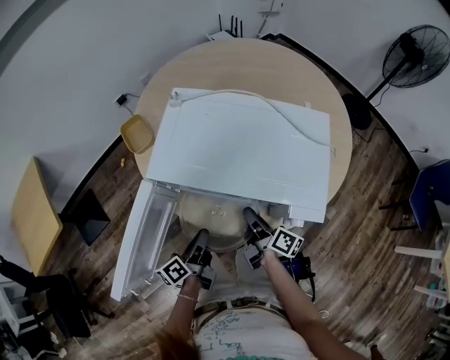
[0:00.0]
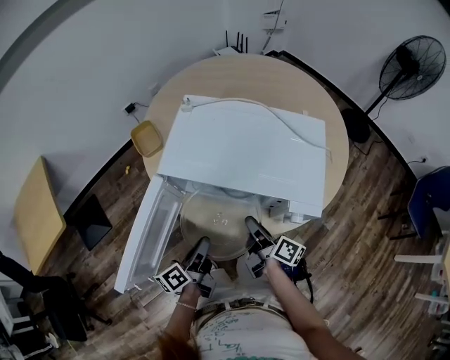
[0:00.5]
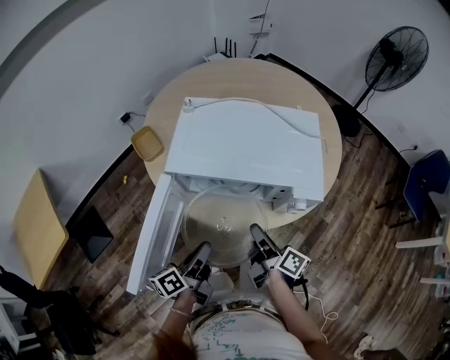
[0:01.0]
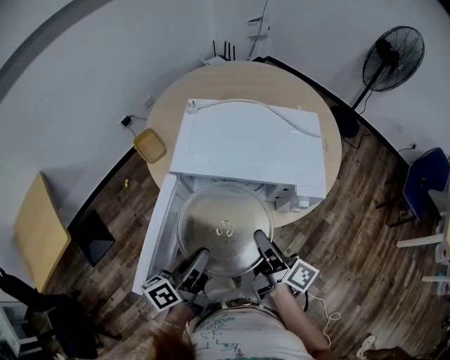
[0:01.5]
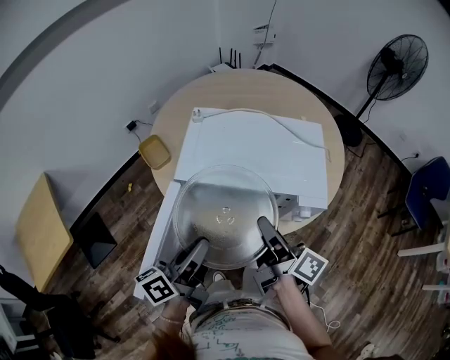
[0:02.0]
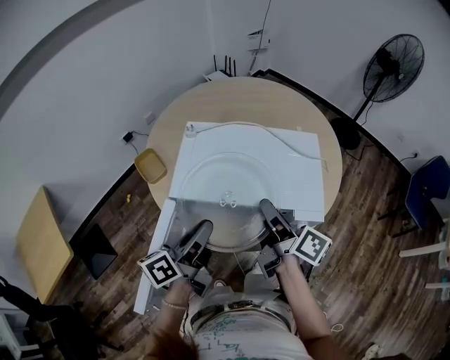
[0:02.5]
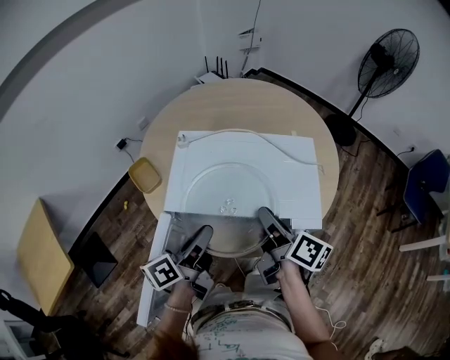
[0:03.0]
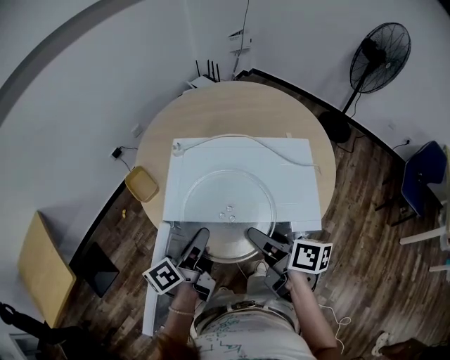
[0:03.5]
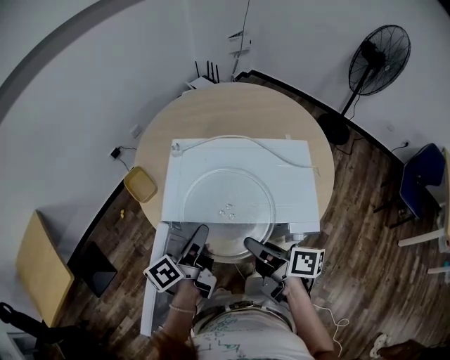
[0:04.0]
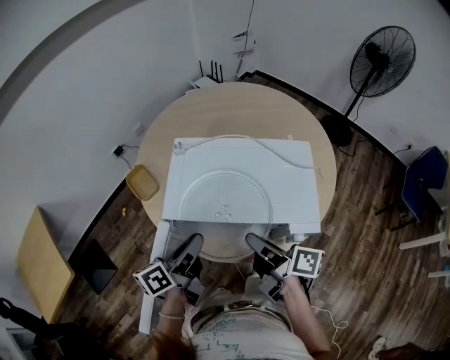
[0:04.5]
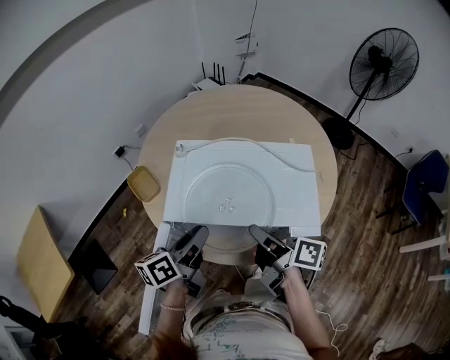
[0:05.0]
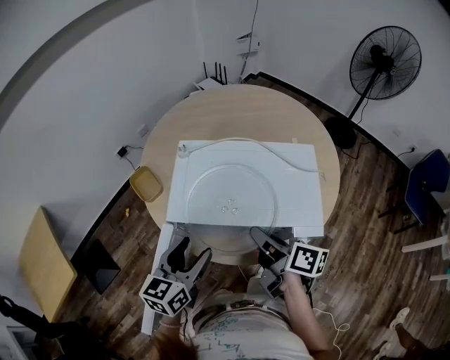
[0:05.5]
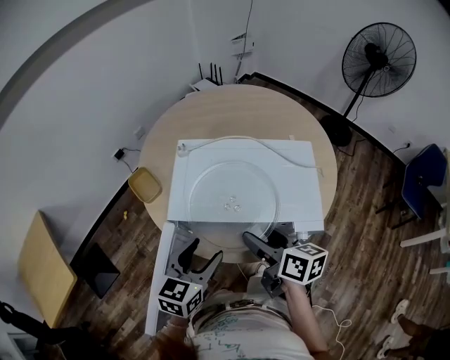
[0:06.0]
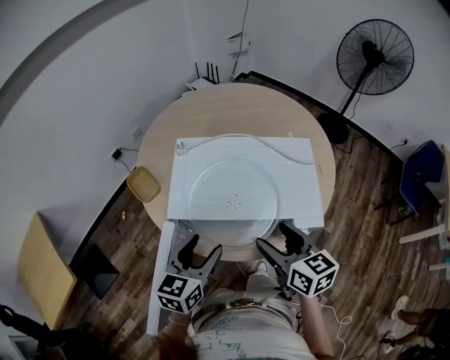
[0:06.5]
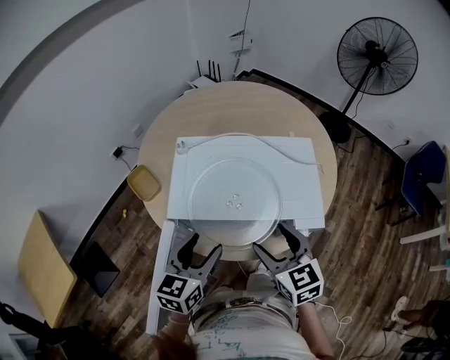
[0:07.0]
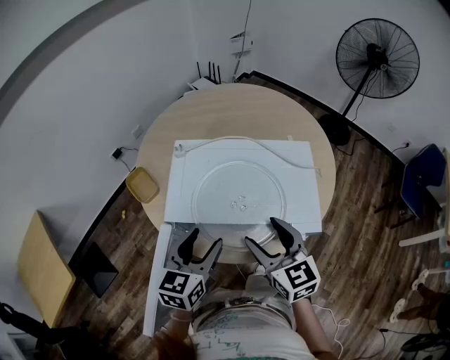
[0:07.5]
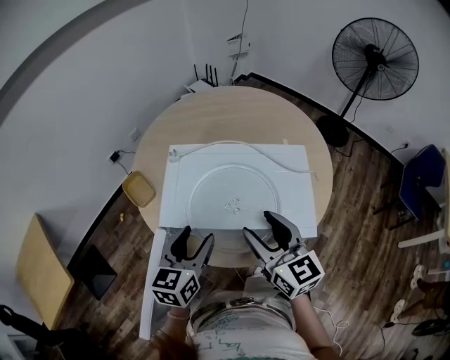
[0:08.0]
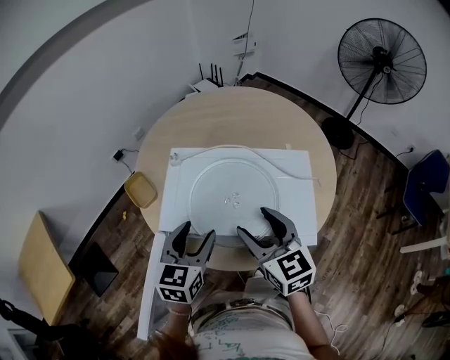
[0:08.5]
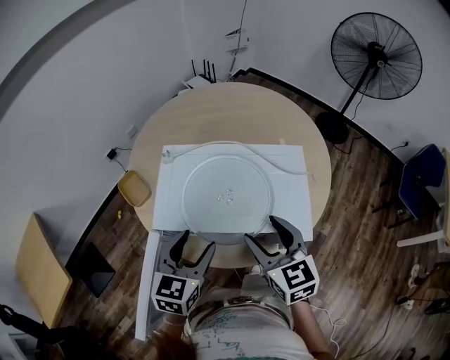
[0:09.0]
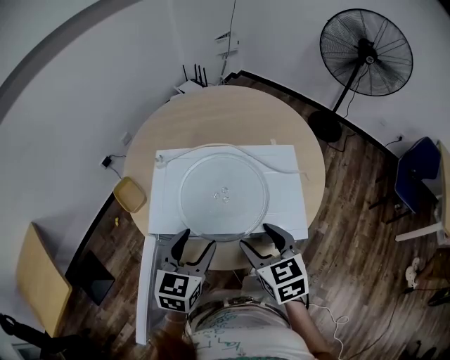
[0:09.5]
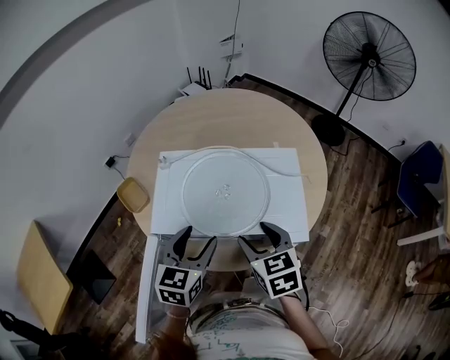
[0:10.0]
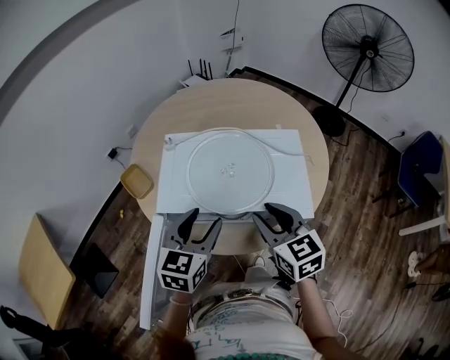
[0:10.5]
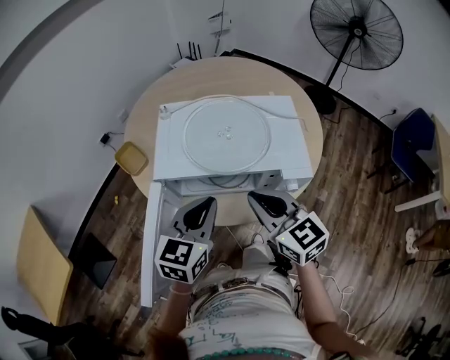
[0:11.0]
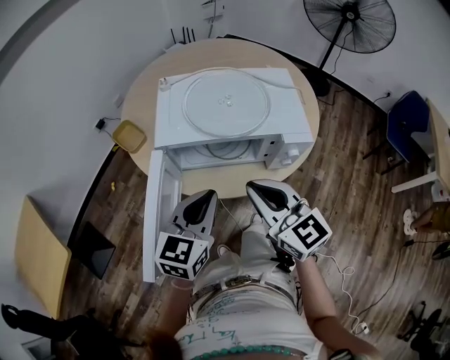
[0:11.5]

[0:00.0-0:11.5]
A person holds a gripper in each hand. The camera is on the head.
0:00.0 to 0:02.0: The two grippers go approximately 20 cm upward. The left gripper turns by approximately 30 degrees.
0:02.0 to 0:04.0: The right gripper opens, then closes once more, while the left gripper moves forward, about 15 cm.
0:04.0 to 0:06.0: The left gripper heads backward, covering about 5 cm, rotates around the line of its fingers by about 60 degrees, clockwise from behind, and opens its fingers. The right gripper turns by some 30 degrees, and opens up.
0:06.0 to 0:07.5: The right gripper rolls counterclockwise, seen from behind, by about 40 degrees.
0:07.5 to 0:09.5: The grippers make only small movements.
0:09.5 to 0:11.5: The left gripper travels backward by about 15 cm, and closes. Meanwhile the right gripper is displaced backward and to the left by roughly 15 cm, changes its angle by about 30 degrees, and closes its fingers.

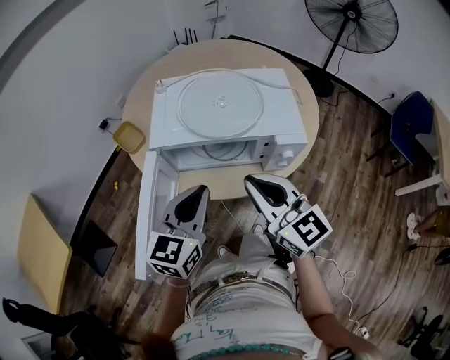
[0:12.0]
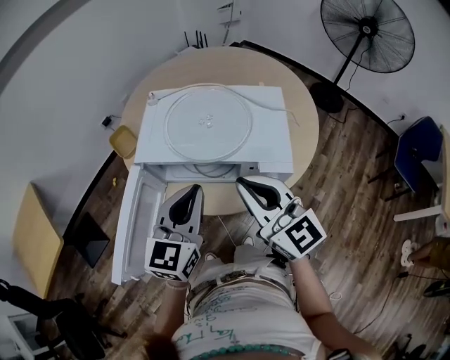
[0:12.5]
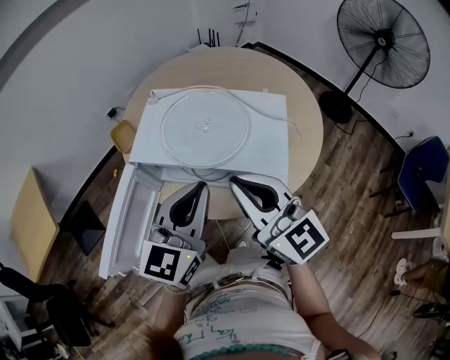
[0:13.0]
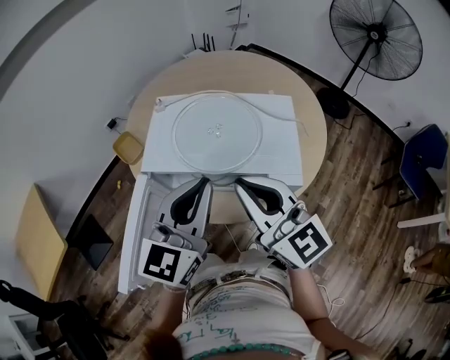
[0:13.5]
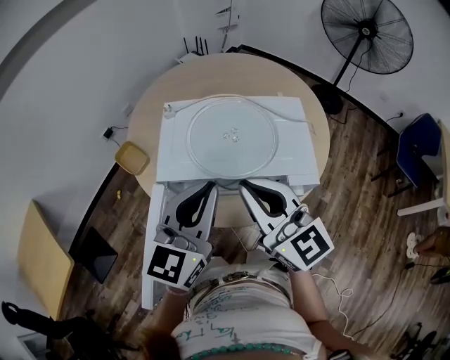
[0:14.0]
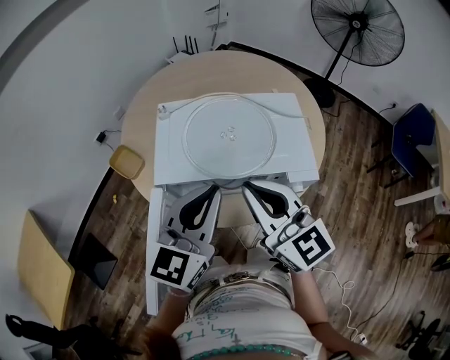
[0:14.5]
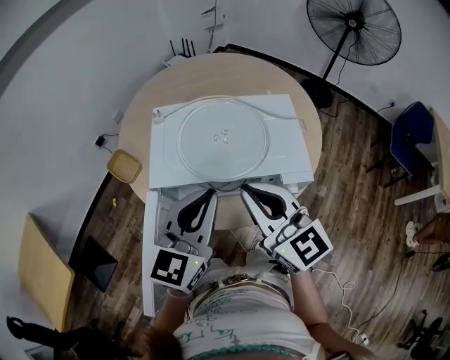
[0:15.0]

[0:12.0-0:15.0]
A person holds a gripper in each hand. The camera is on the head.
0:12.0 to 0:13.5: The left gripper shifts approximately 15 cm upward, to the right and forward. The right gripper is displaced forward and upward by some 10 cm.
0:13.5 to 0:15.0: The grippers move only a little.

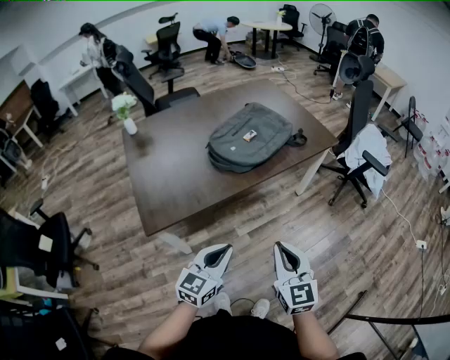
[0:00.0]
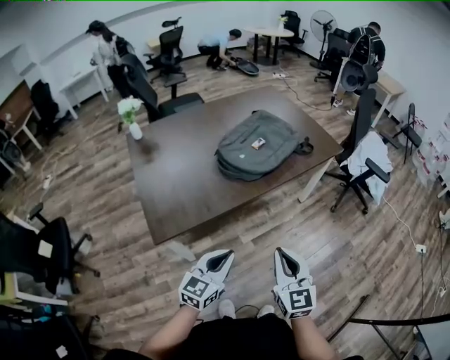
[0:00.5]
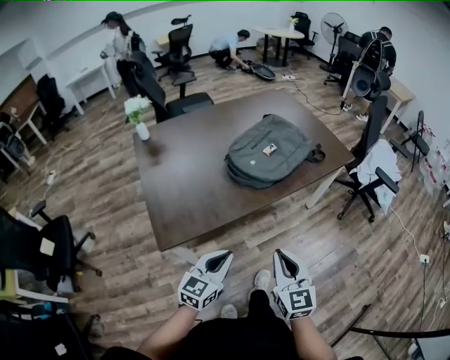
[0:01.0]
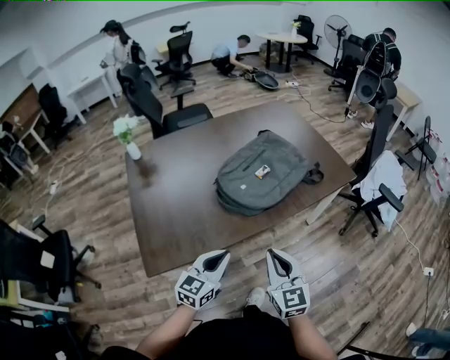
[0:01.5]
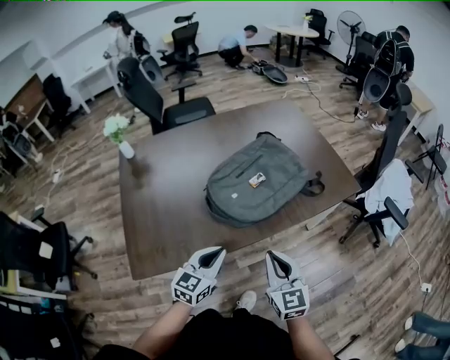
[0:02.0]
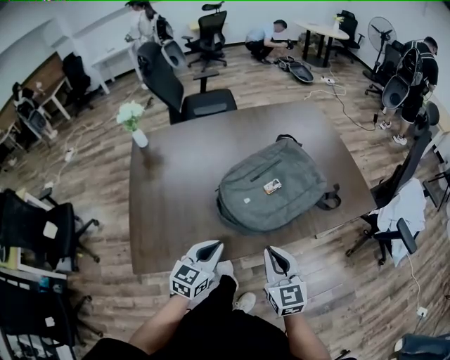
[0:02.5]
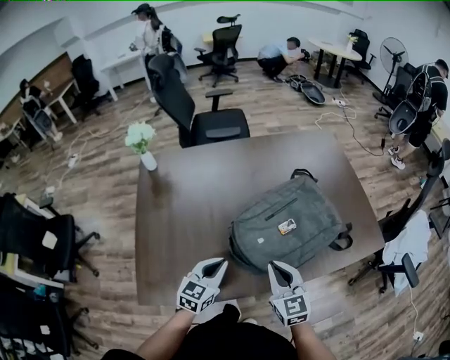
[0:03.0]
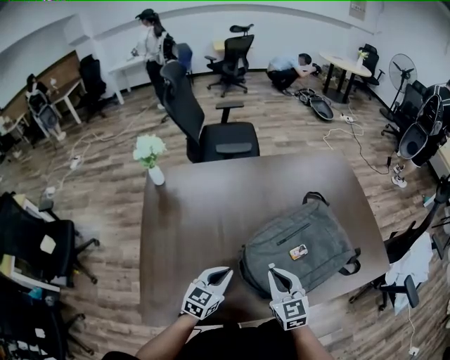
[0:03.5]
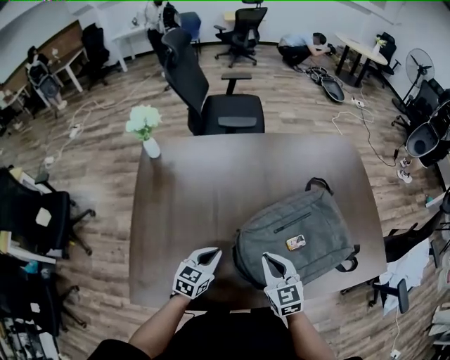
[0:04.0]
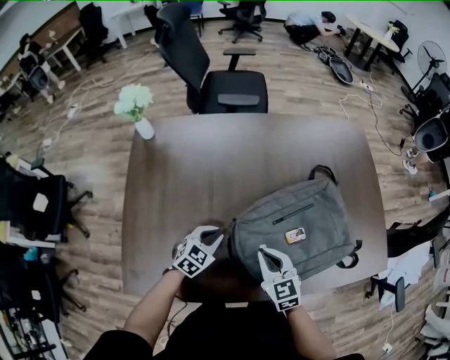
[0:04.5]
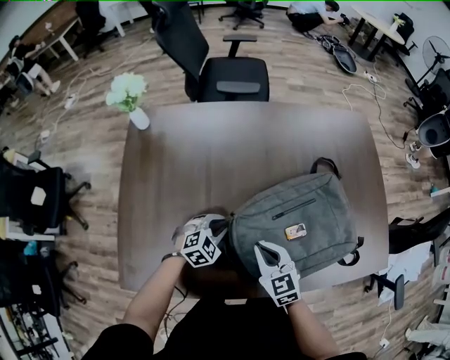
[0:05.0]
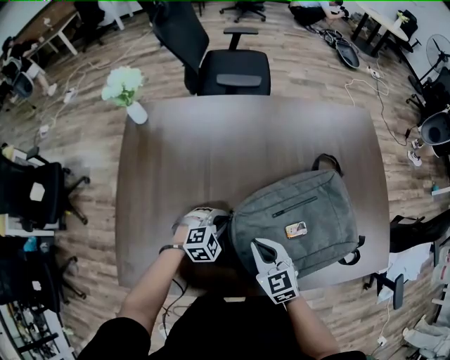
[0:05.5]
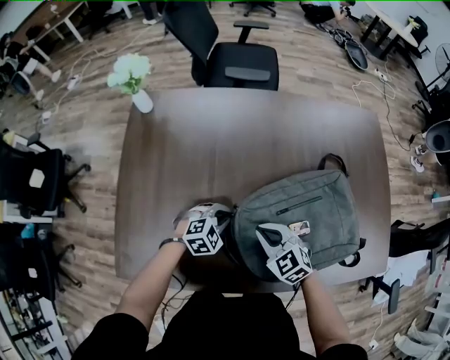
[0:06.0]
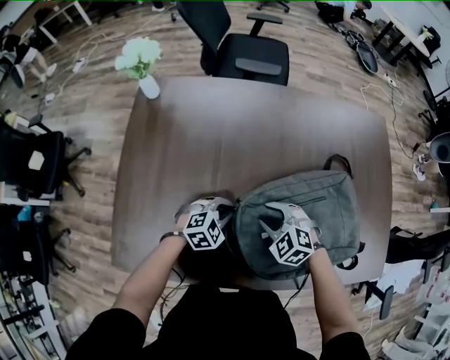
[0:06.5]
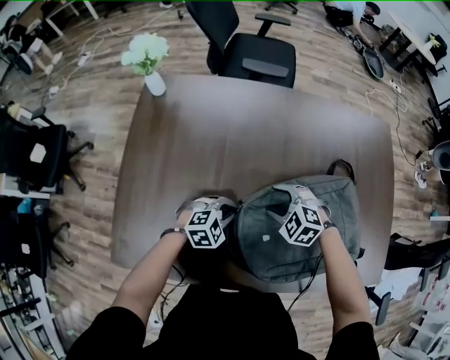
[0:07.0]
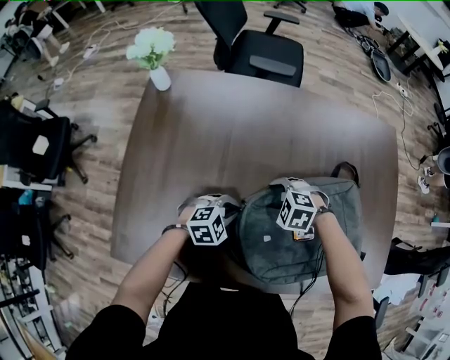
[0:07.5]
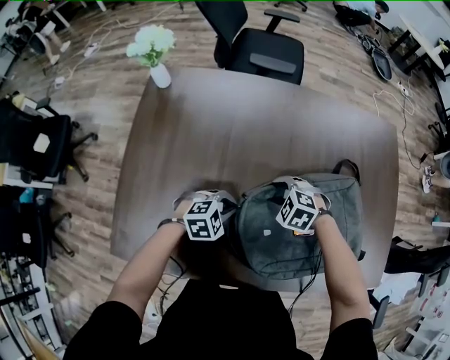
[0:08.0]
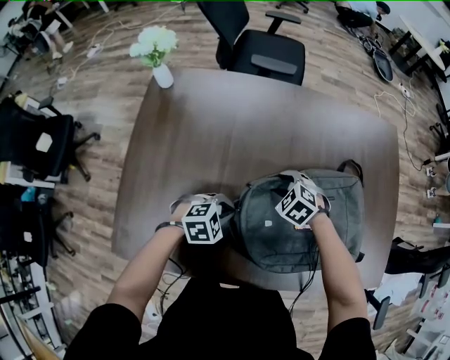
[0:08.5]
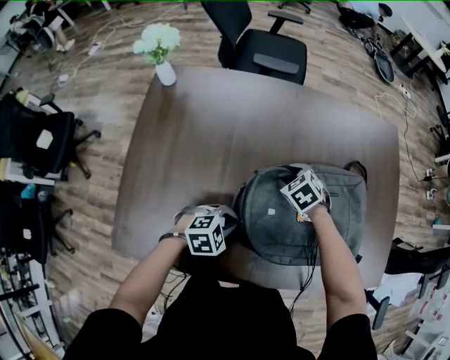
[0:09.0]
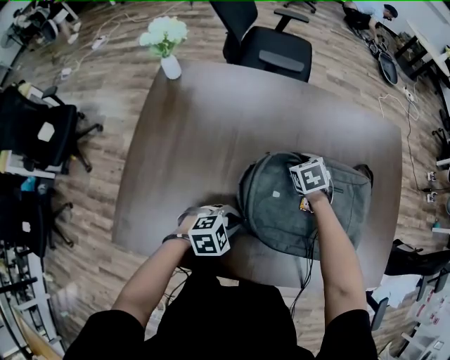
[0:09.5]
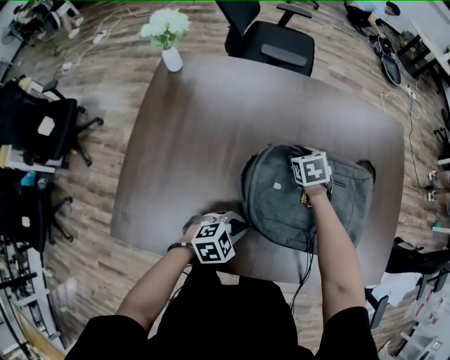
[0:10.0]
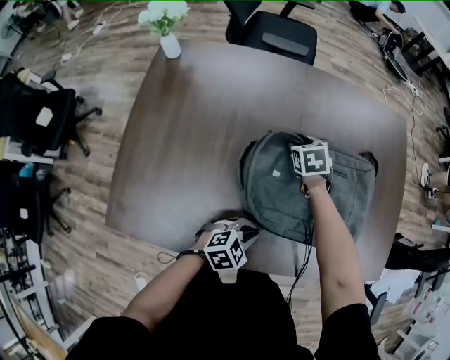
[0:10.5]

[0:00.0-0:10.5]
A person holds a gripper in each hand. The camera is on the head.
0:00.0 to 0:02.0: Both grippers move forward, approximately 25 cm.
0:02.0 to 0:04.0: The right gripper heads forward and to the left, covering approximately 25 cm, and rotates about 20 degrees. The left gripper shifts approximately 25 cm forward, to the left and downward.
0:04.0 to 0:06.5: The left gripper is displaced downward, to the right and forward by about 10 cm, and swivels about 40 degrees. Meanwhile the right gripper moves downward and forward, some 10 cm, rotates approximately 50 degrees, and opens.
0:06.5 to 0:08.5: The right gripper ends up approximately 10 cm from where it was.
0:08.5 to 0:10.5: The left gripper moves to the right and backward, some 15 cm. The right gripper is displaced forward by approximately 10 cm, and turns by about 40 degrees.

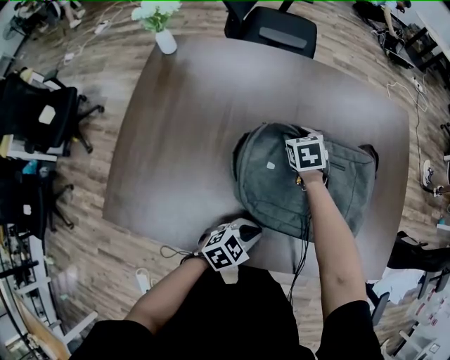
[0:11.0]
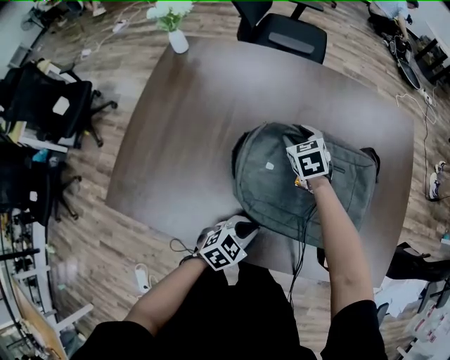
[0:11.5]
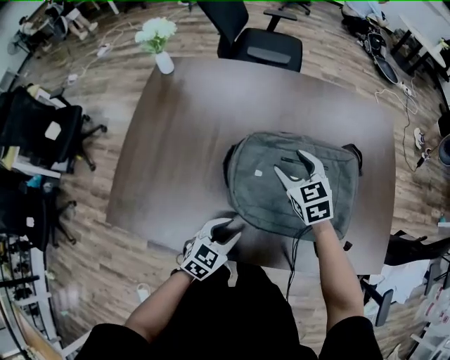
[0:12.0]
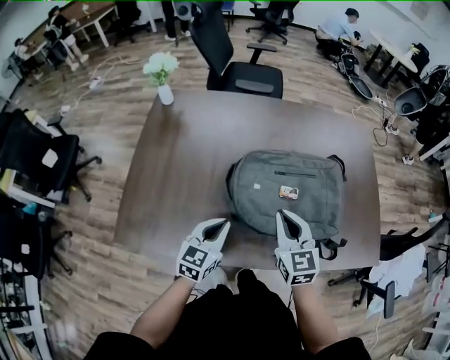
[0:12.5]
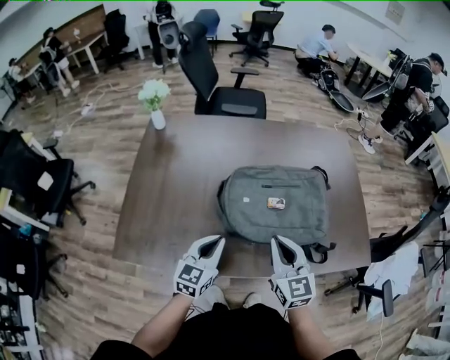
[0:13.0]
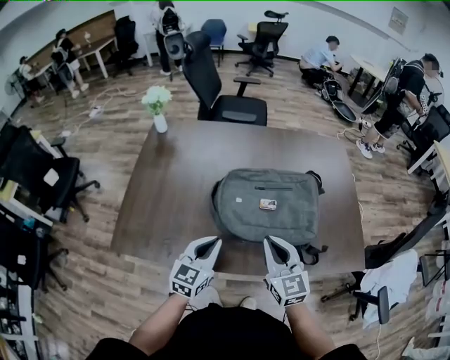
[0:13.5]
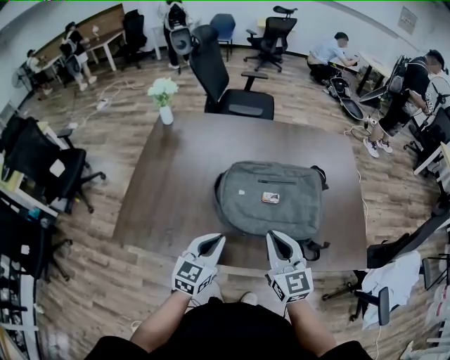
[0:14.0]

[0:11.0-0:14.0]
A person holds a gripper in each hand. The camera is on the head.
0:11.0 to 0:12.5: The right gripper heads backward and upward, covering some 30 cm, points its fingers roughly 30 degrees further upward, and closes its fingers; the left gripper shifts some 15 cm to the left and upward, turns by some 40 degrees, and opens, then closes again.
0:12.5 to 0:14.0: The right gripper heads backward and to the right, covering some 10 cm; the left gripper heads to the right and backward, covering roughly 10 cm.
